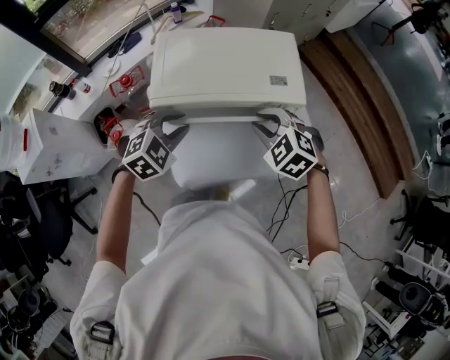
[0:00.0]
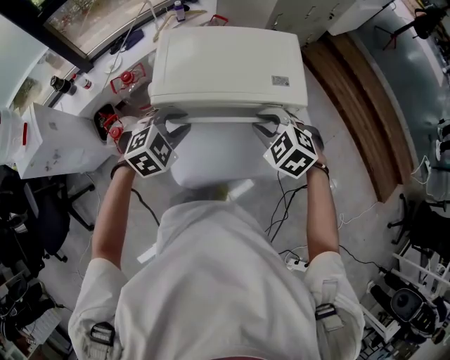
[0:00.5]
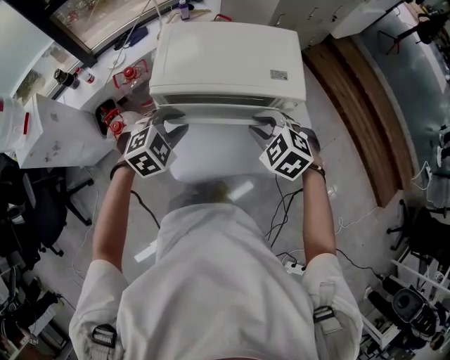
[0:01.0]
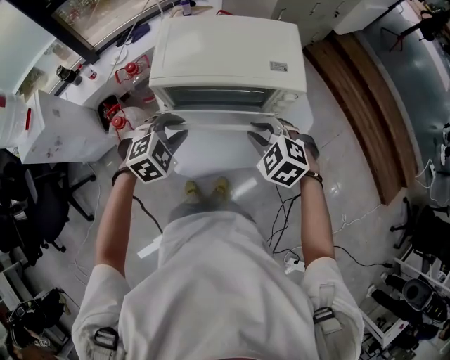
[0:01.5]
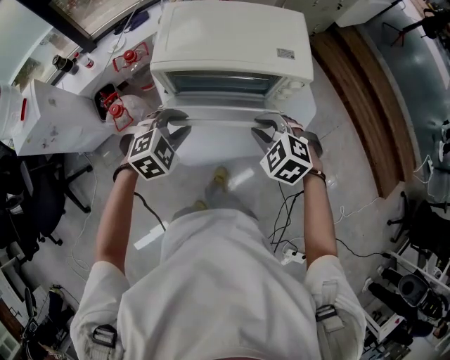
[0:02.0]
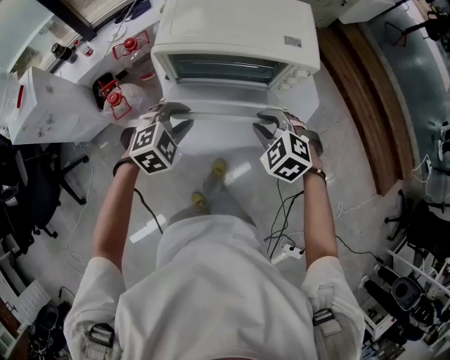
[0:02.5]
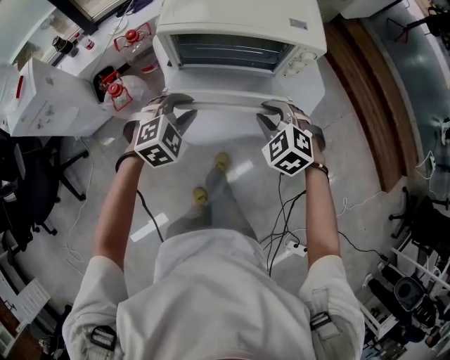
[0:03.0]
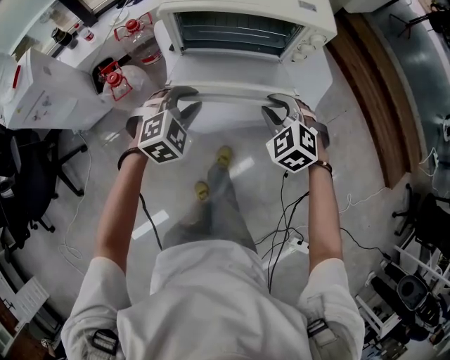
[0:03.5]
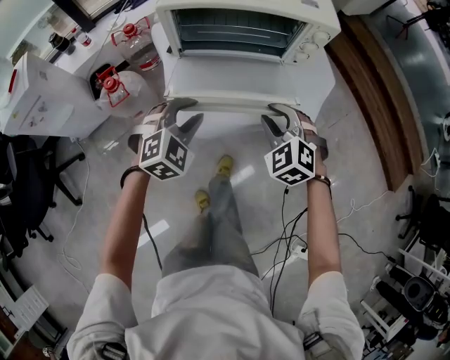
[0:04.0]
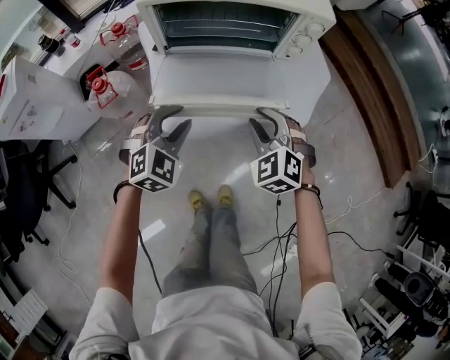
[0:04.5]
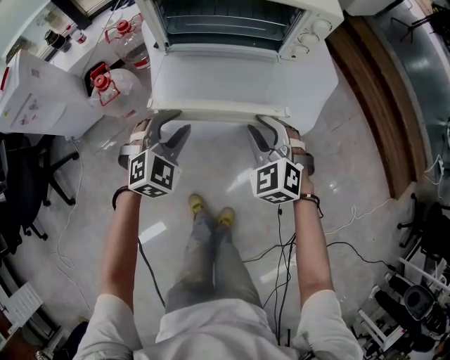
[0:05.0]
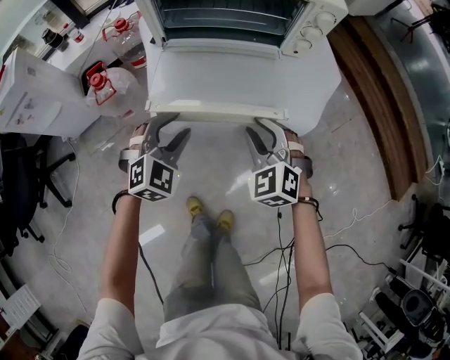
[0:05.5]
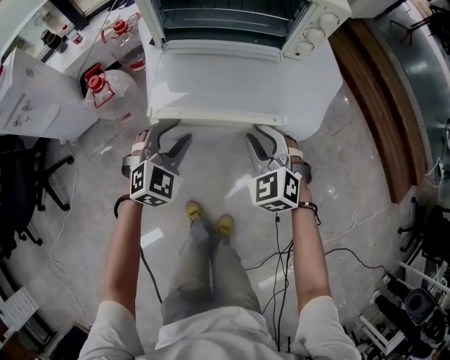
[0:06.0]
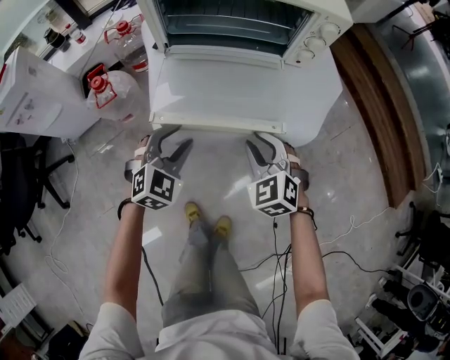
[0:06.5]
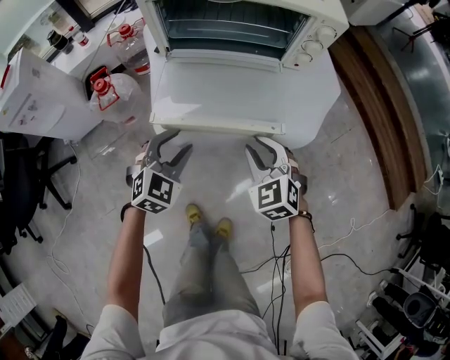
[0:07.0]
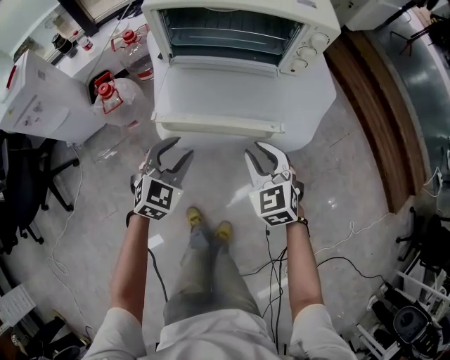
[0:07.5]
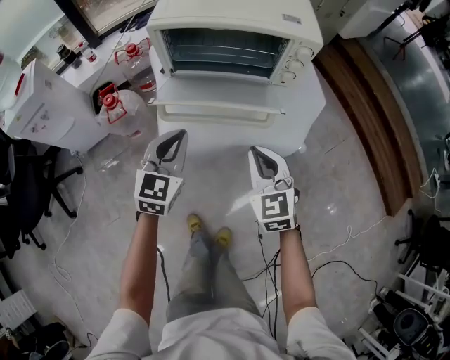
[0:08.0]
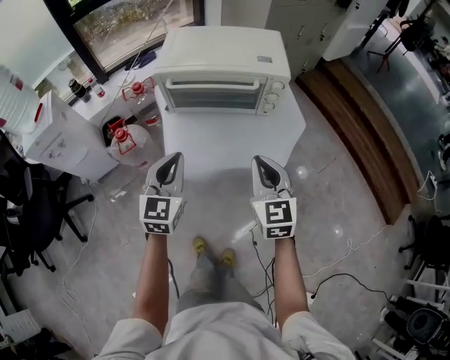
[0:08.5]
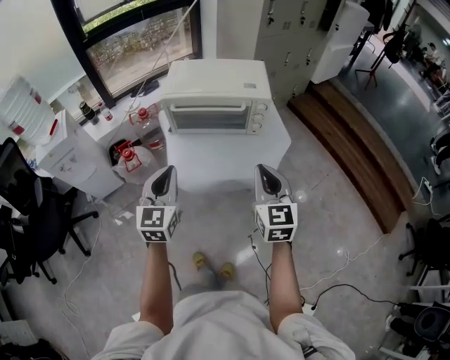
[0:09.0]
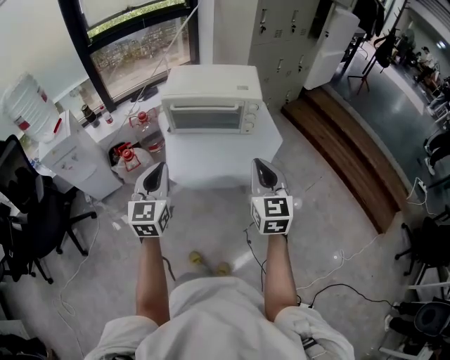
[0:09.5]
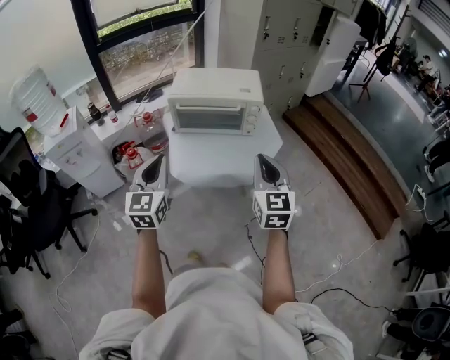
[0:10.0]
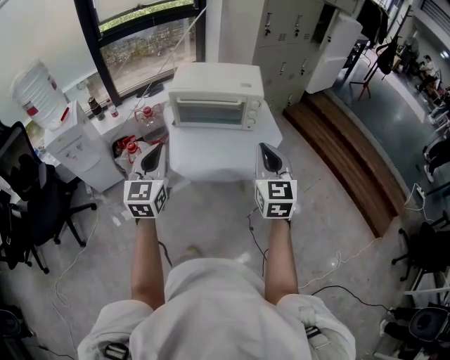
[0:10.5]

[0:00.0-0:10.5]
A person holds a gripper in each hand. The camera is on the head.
0:00.0 to 0:02.0: The two grippers go roughly 10 cm backward.
0:02.0 to 0:04.0: The two grippers go roughly 15 cm downward and backward.
0:04.0 to 0:06.5: Both grippers travel together downward, approximately 10 cm.
0:06.5 to 0:08.5: The grippers both shift upward by approximately 25 cm. The left gripper turns by approximately 40 degrees, and closes. Meanwhile the right gripper swivels some 40 degrees, and closes its fingers.
0:08.5 to 0:10.5: The grippers both shift upward and backward by roughly 20 cm.

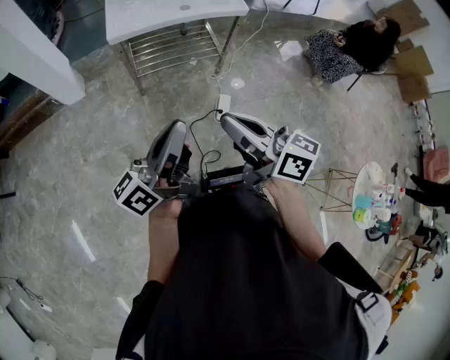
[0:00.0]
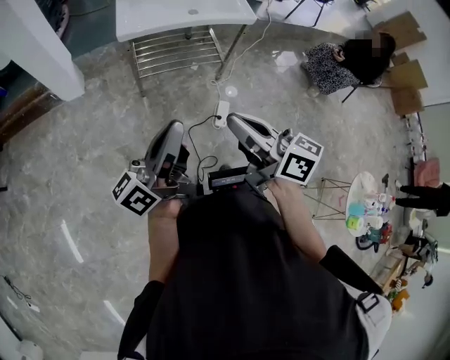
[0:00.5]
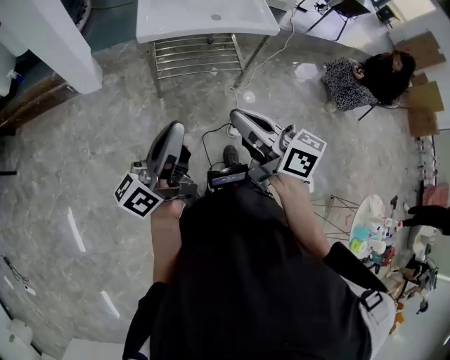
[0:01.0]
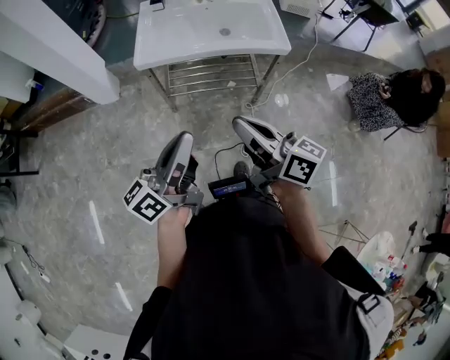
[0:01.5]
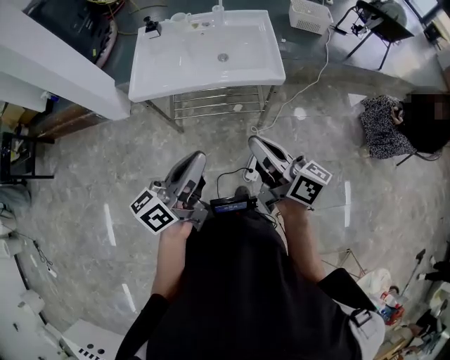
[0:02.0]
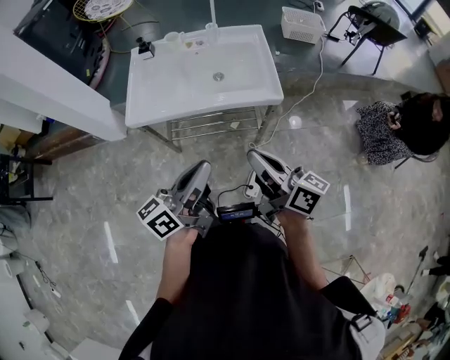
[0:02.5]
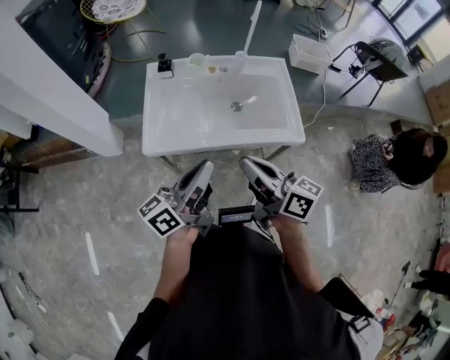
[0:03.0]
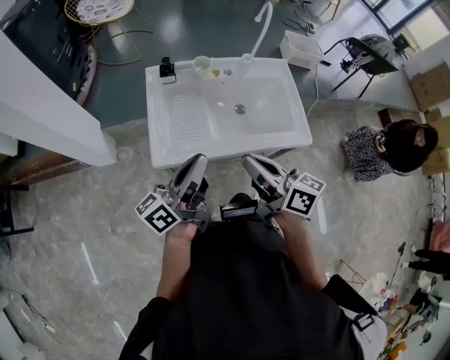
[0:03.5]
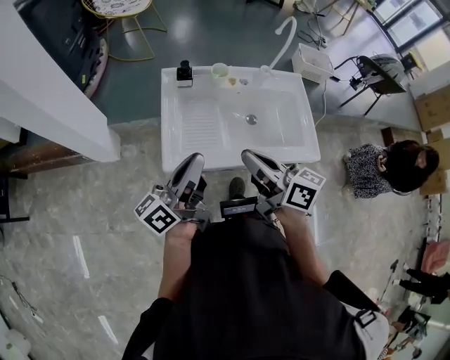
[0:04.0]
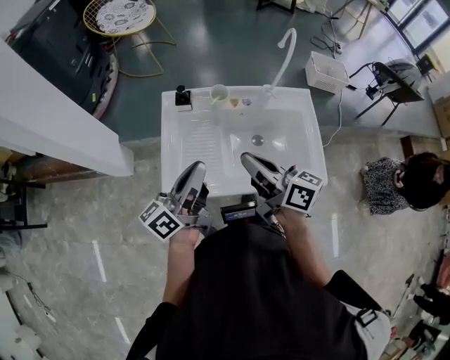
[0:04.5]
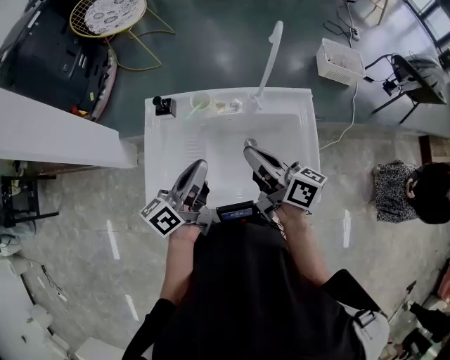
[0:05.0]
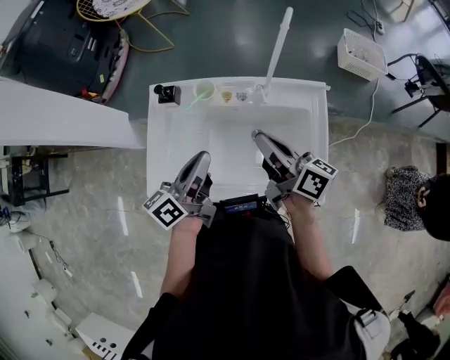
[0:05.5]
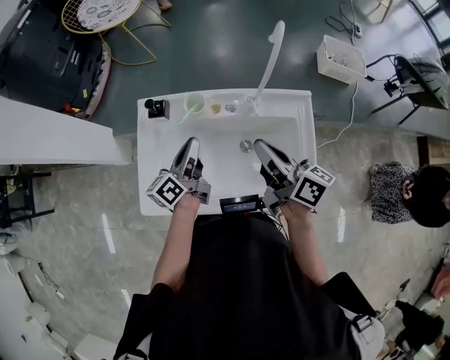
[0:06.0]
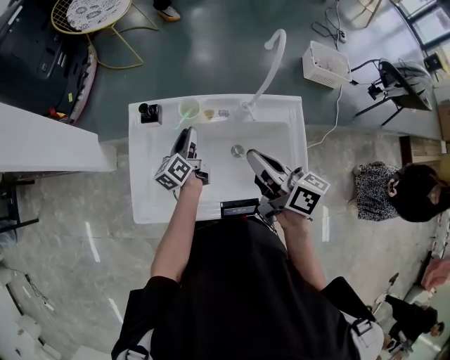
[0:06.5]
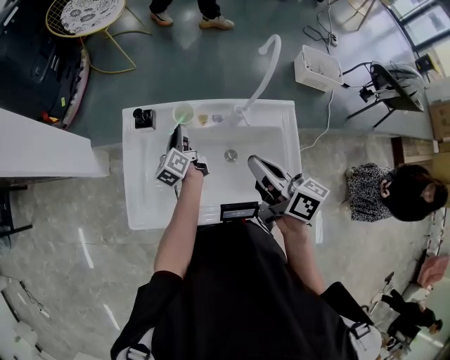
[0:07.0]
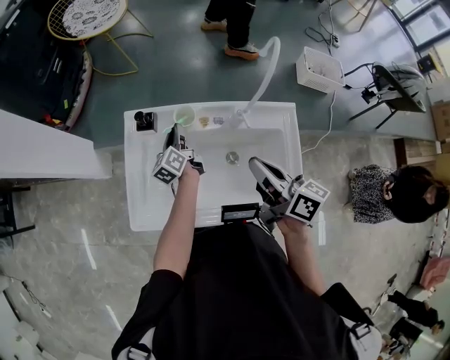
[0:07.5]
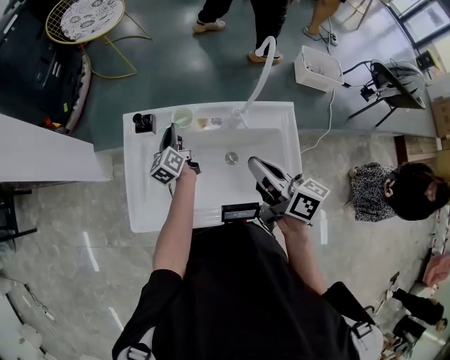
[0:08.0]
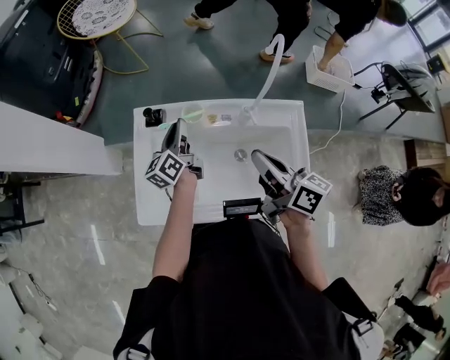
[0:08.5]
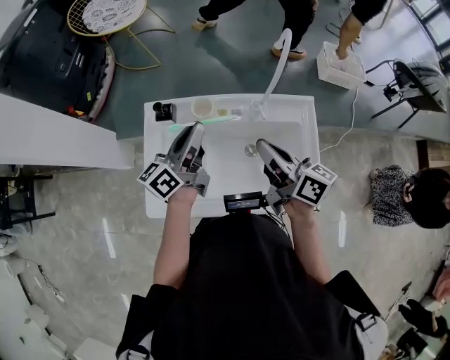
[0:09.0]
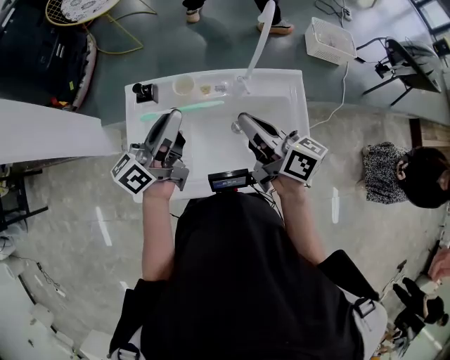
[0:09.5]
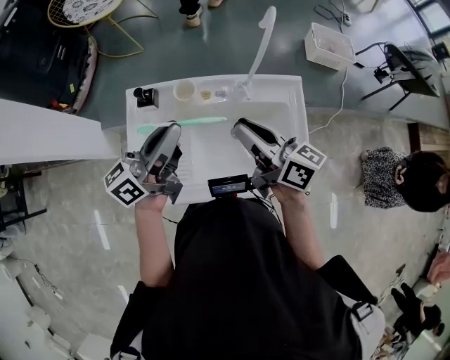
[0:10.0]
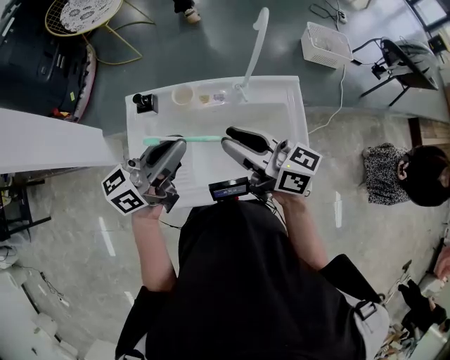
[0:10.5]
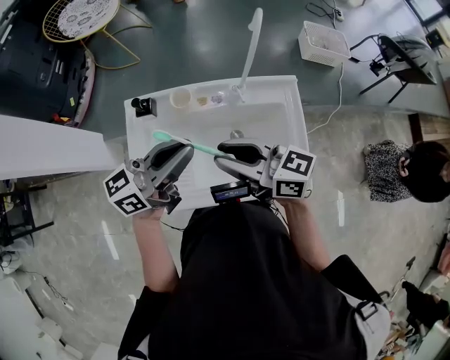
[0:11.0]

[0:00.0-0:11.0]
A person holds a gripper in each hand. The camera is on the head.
0:00.0 to 0:02.0: Both grippers move forward and to the right, some 35 cm. The left gripper swivels approximately 20 degrees.
0:02.0 to 0:03.5: Both grippers move forward and to the left, about 35 cm.
0:03.5 to 0:05.5: Both grippers travel together forward and to the right, some 30 cm. The left gripper rotates some 30 degrees.
0:05.5 to 0:07.5: The left gripper is displaced forward and downward by about 25 cm, and changes its angle by approximately 30 degrees.
0:07.5 to 0:09.0: The left gripper heads upward and backward, covering some 20 cm, and rotates roughly 30 degrees.
0:09.0 to 0:11.0: The left gripper travels backward and upward by roughly 10 cm, and changes its angle by some 30 degrees; the right gripper heads to the left and backward, covering some 10 cm, swivels some 30 degrees, and opens up.

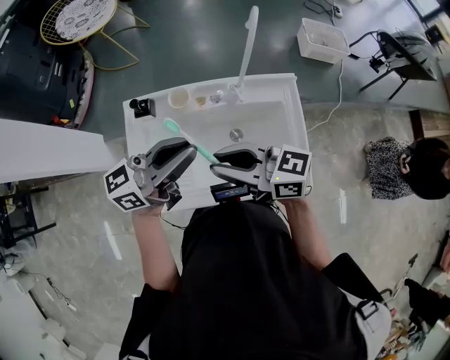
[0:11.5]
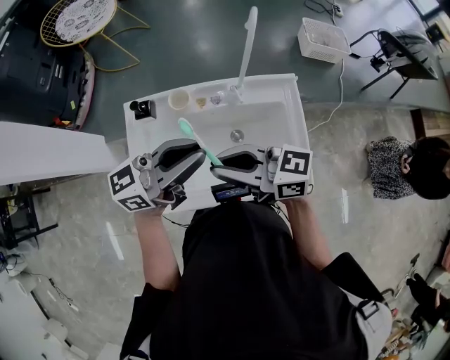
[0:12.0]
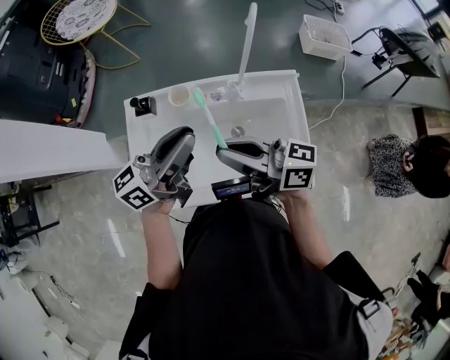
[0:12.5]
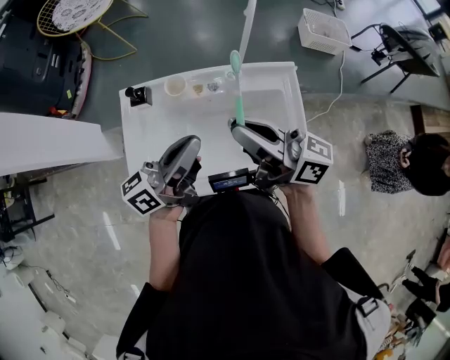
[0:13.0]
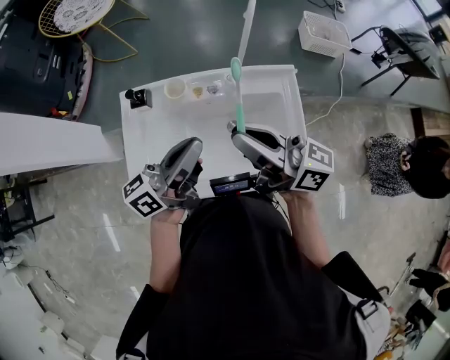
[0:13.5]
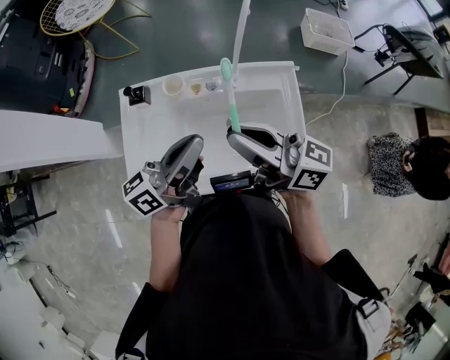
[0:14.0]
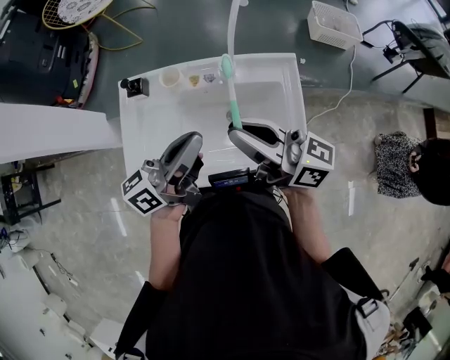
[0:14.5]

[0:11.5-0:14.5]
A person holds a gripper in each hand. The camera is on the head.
0:11.5 to 0:13.0: The right gripper shifts by about 10 cm, and changes its angle by roughly 20 degrees; the left gripper swivels roughly 20 degrees.
0:13.0 to 0:14.5: There are only small adjustments of the grippers.

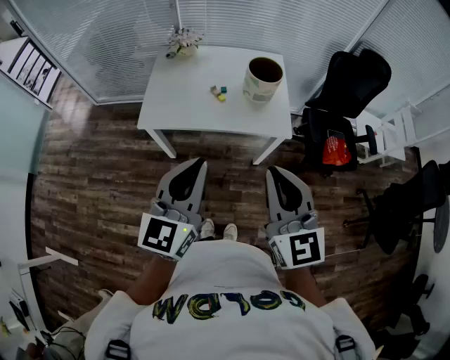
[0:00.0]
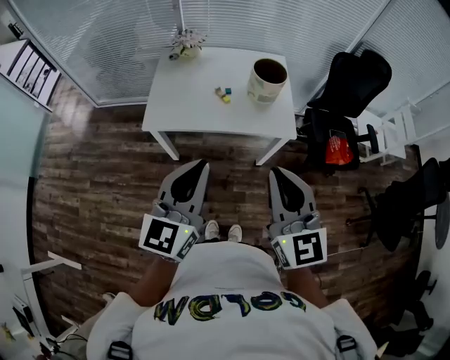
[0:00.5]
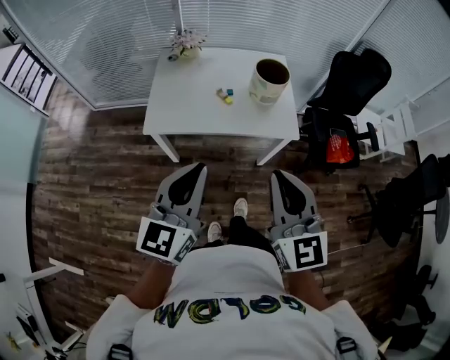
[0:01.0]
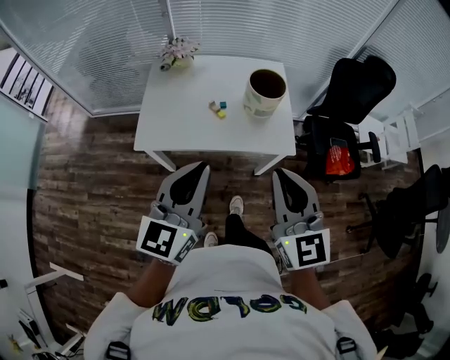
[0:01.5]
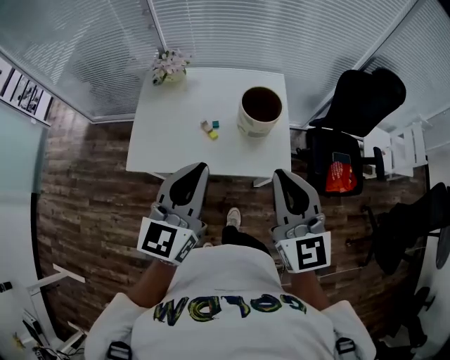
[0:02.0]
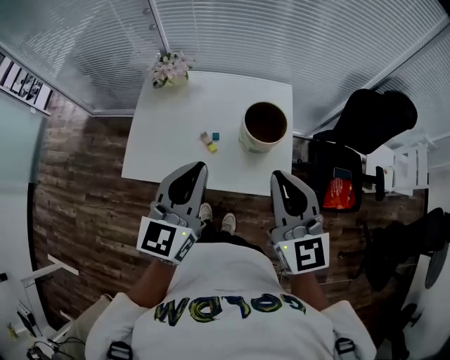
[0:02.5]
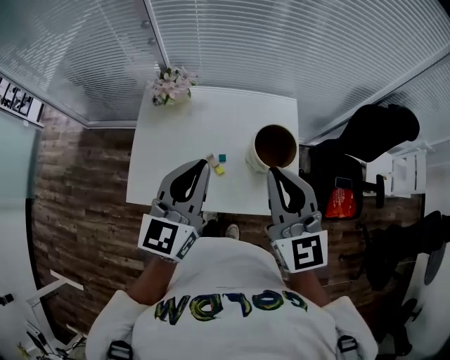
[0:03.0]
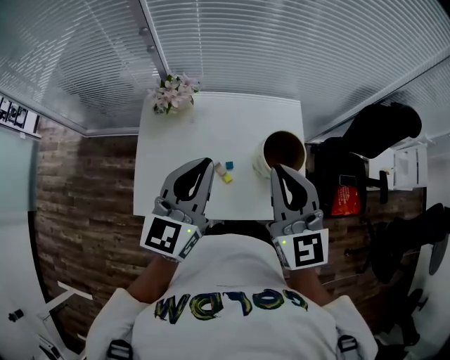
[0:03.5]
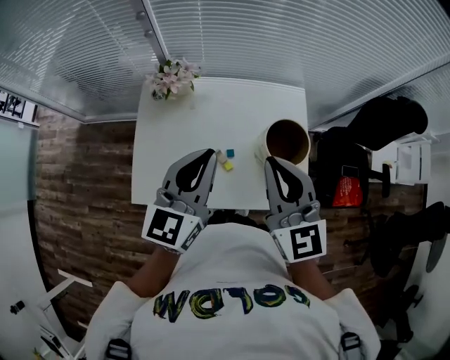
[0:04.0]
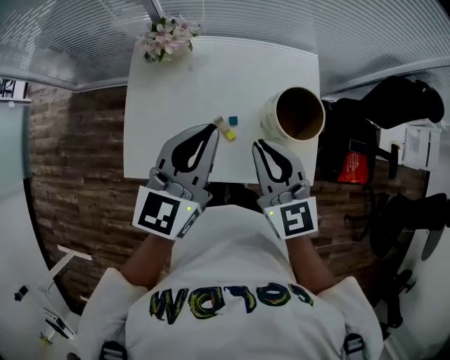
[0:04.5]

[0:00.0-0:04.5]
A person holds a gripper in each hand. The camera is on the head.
0:00.0 to 0:02.0: The two grippers go approximately 25 cm forward.
0:02.0 to 0:04.5: The right gripper heads forward, downward and to the left, covering roughly 30 cm. Meanwhile the left gripper heads forward, covering some 25 cm.
